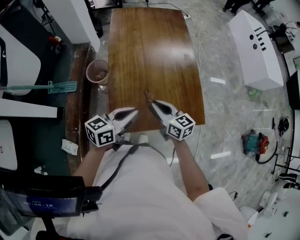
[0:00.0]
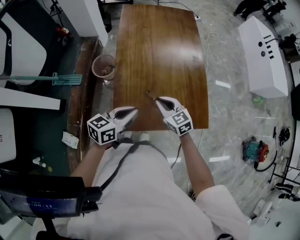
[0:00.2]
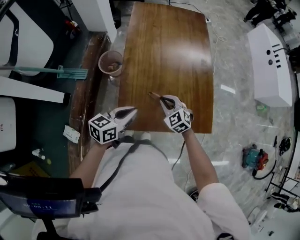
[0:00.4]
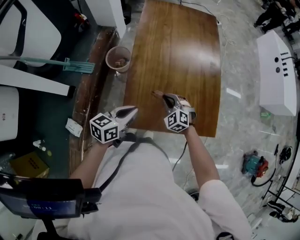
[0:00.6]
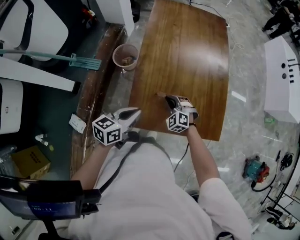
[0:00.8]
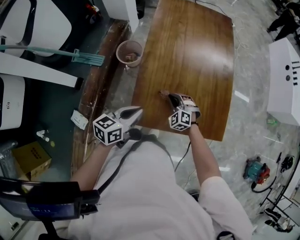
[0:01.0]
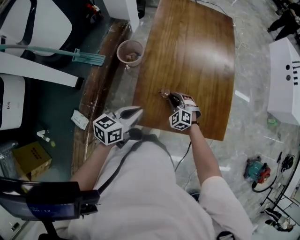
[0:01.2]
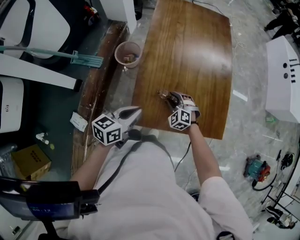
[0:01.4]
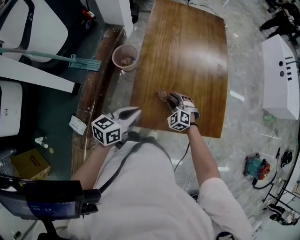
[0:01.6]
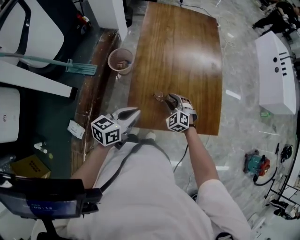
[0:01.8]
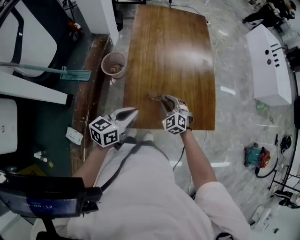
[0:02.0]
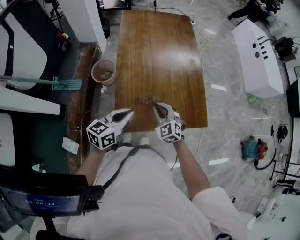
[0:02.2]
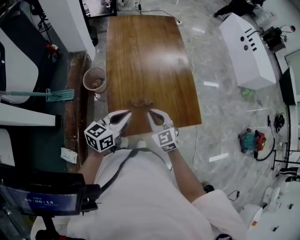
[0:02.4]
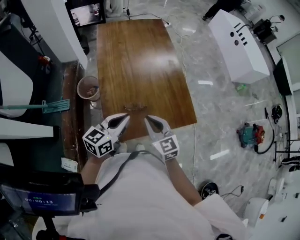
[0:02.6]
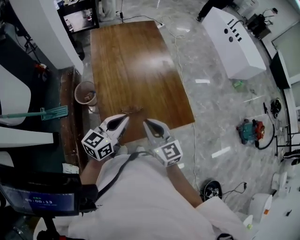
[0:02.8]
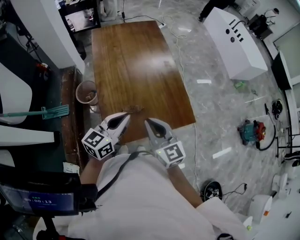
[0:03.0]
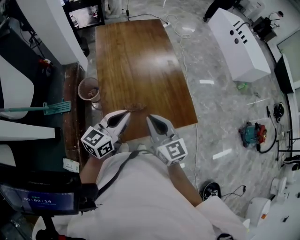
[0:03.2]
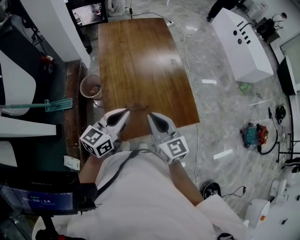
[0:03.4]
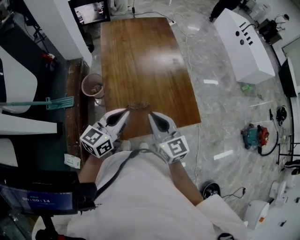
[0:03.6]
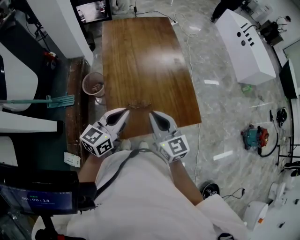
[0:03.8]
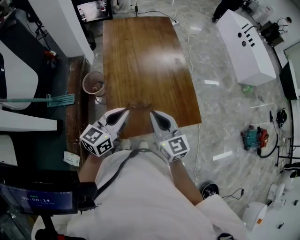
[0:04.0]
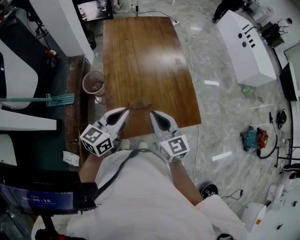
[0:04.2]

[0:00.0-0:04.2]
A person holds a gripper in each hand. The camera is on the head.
0:00.0 to 0:01.4: The right gripper moves downward, about 20 cm, rolls counterclockwise, seen from behind, by some 70 degrees, and opens up. Meanwhile the left gripper travels to the left and downward by roughly 10 cm.
0:01.4 to 0:02.8: The left gripper heads upward and to the right, covering roughly 15 cm, and rotates about 30 degrees. Meanwhile the right gripper travels upward and backward by some 30 cm, twists approximately 60 degrees clockwise, seen from behind, and closes its fingers.
0:02.8 to 0:04.2: There are only small adjustments of the grippers.

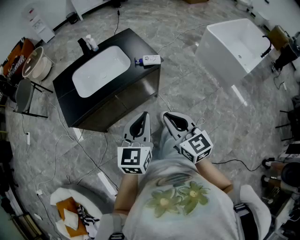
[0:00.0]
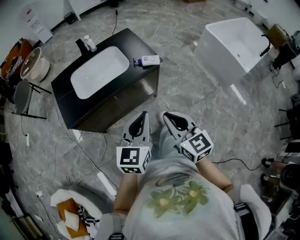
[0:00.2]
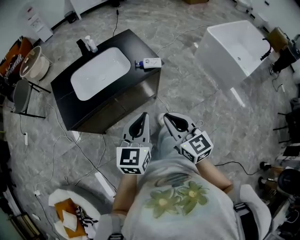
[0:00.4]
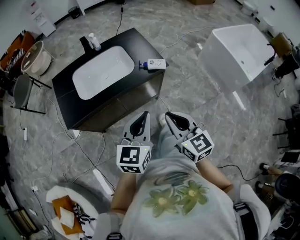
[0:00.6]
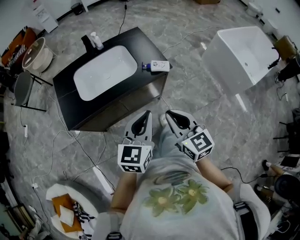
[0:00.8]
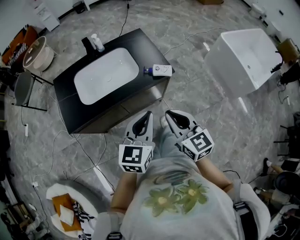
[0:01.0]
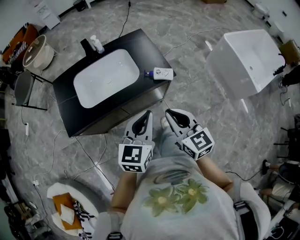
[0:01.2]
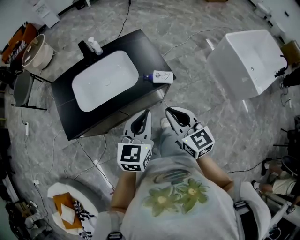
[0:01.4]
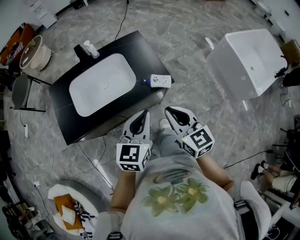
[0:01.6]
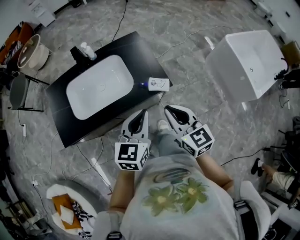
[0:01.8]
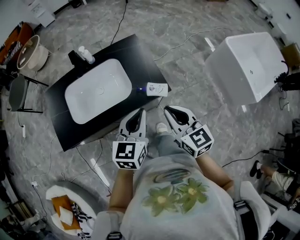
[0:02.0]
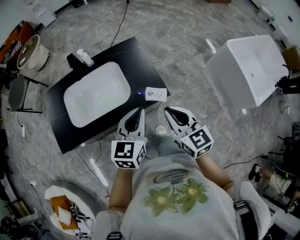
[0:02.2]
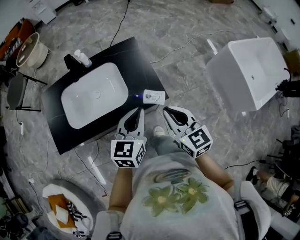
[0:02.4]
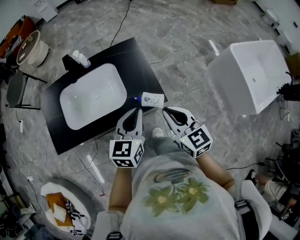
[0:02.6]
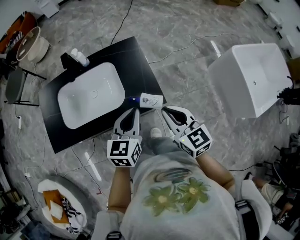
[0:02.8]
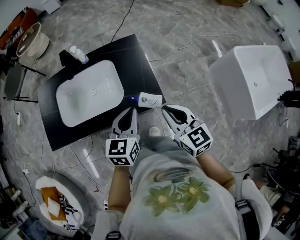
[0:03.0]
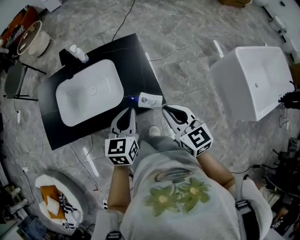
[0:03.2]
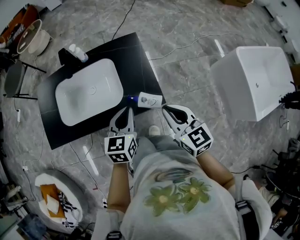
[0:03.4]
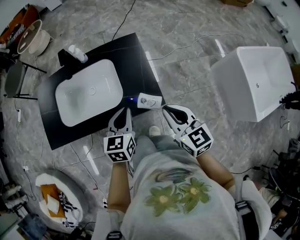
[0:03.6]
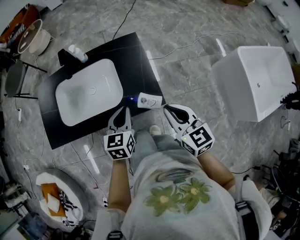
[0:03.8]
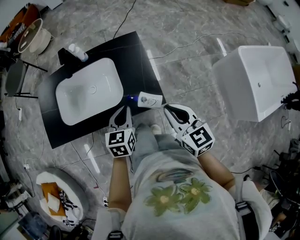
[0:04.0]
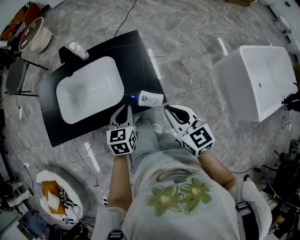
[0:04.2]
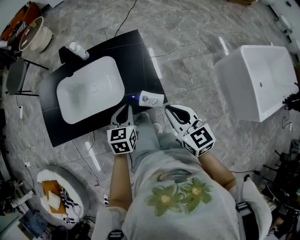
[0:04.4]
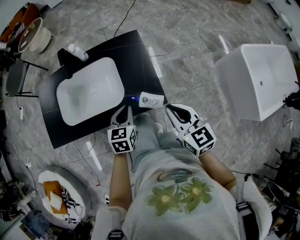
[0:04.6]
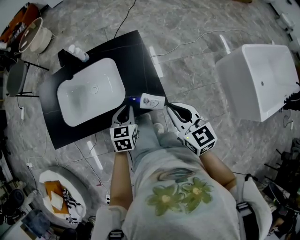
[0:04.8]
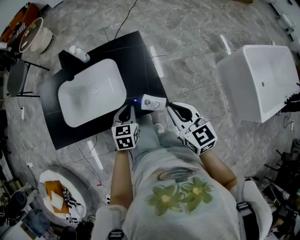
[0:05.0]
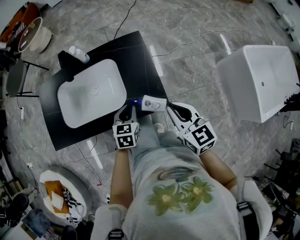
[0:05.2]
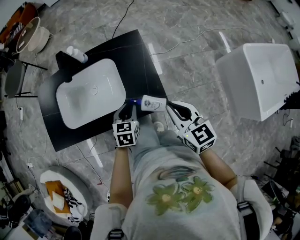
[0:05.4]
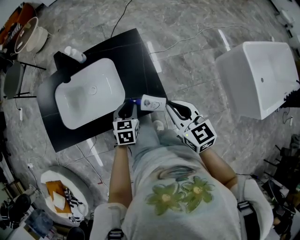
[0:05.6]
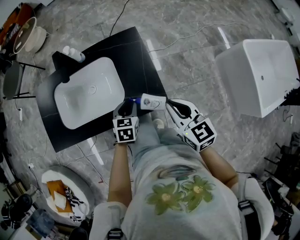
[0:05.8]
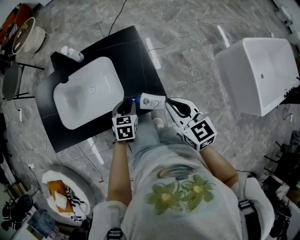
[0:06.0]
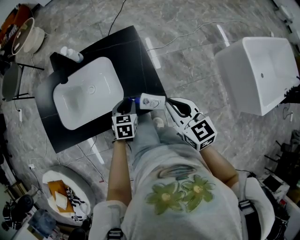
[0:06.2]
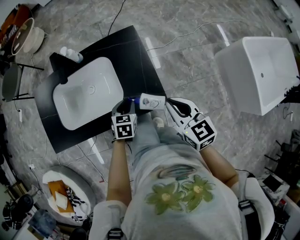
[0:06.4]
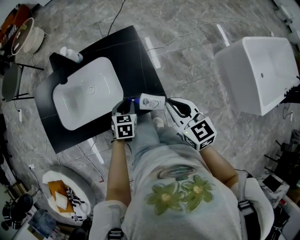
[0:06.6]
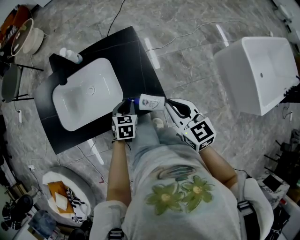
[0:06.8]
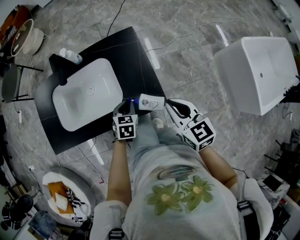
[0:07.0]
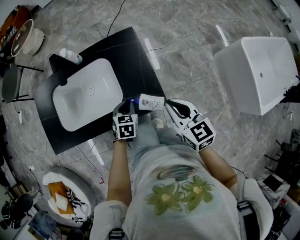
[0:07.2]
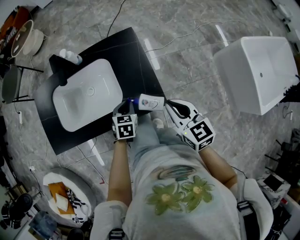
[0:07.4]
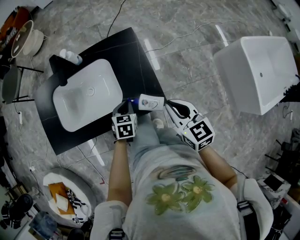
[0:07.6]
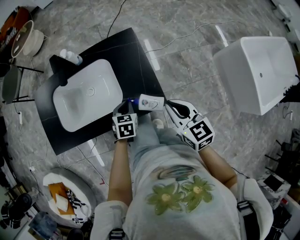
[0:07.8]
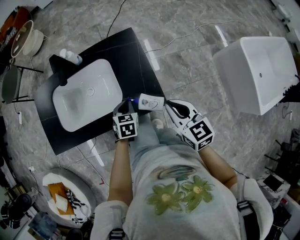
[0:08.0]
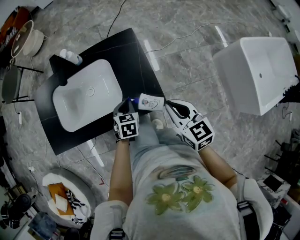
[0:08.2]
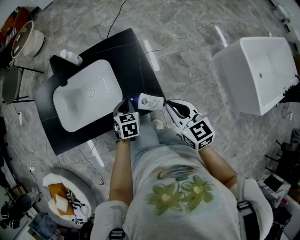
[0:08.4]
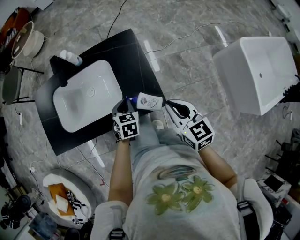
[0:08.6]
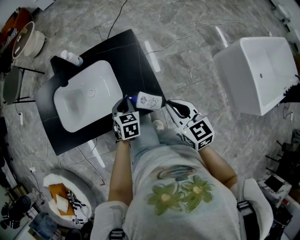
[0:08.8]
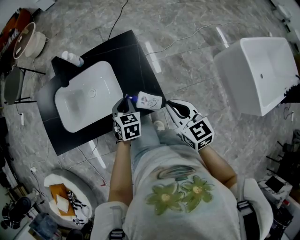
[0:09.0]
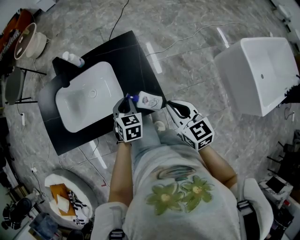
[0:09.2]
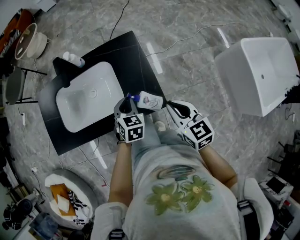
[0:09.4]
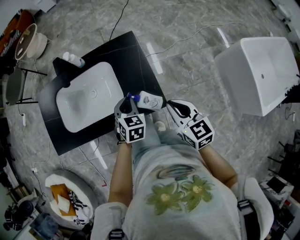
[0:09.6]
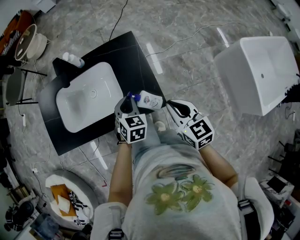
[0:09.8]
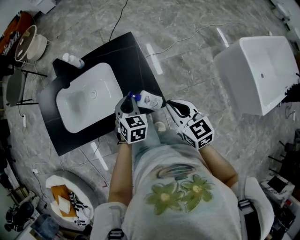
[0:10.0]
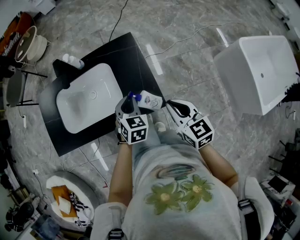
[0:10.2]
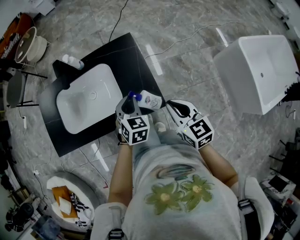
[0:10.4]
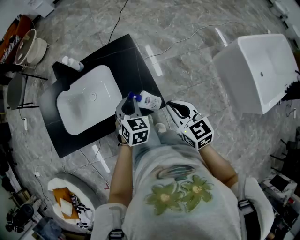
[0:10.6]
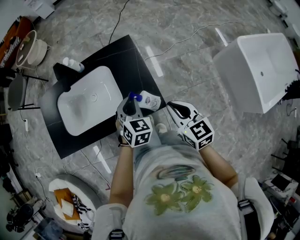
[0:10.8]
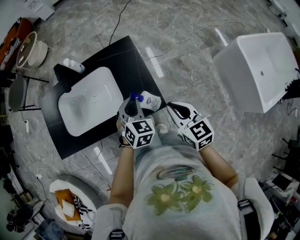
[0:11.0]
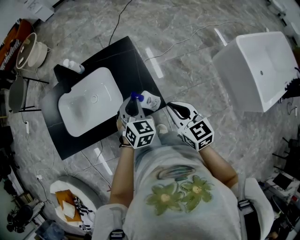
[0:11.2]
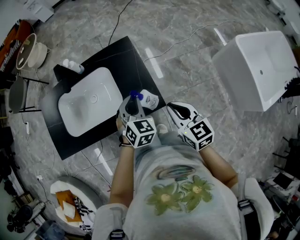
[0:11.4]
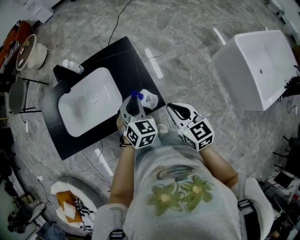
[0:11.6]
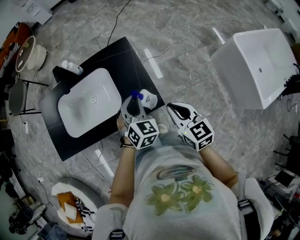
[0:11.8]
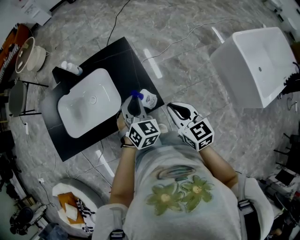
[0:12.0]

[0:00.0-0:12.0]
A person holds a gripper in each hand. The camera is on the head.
0:00.0 to 0:01.6: The grippers both shift forward by some 30 cm.
0:01.6 to 0:03.0: The left gripper moves forward, downward and to the right, roughly 20 cm; the right gripper moves forward and to the right, roughly 20 cm.
0:03.0 to 0:04.4: The left gripper moves downward, some 10 cm.
0:04.4 to 0:06.0: The right gripper moves forward, approximately 5 cm, while the left gripper travels downward and forward by approximately 10 cm, and opens up.
0:06.0 to 0:07.6: The left gripper closes its fingers.
0:07.6 to 0:09.0: The left gripper moves about 5 cm.
0:09.0 to 0:10.4: The left gripper heads upward, covering approximately 5 cm.
0:10.4 to 0:12.0: The left gripper ends up about 5 cm from where it was.

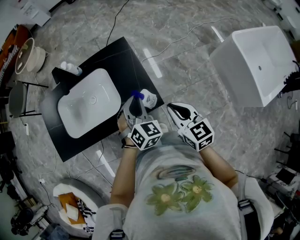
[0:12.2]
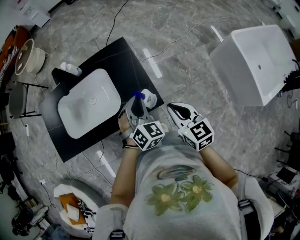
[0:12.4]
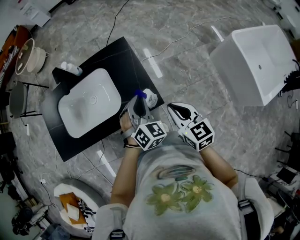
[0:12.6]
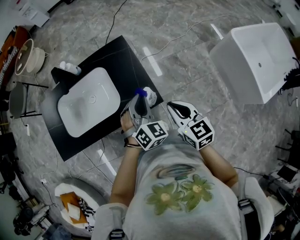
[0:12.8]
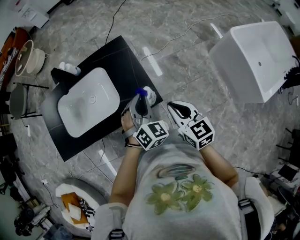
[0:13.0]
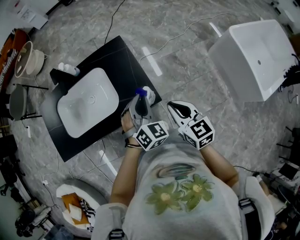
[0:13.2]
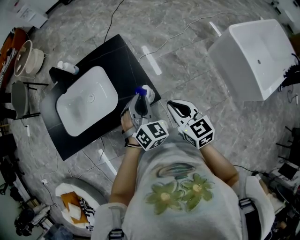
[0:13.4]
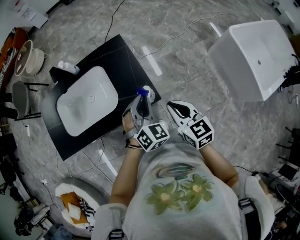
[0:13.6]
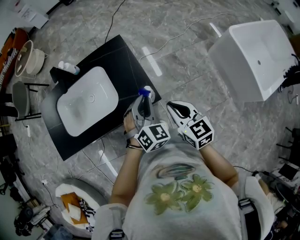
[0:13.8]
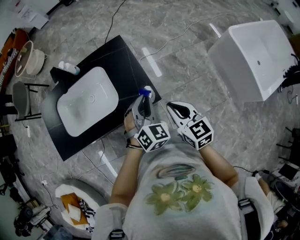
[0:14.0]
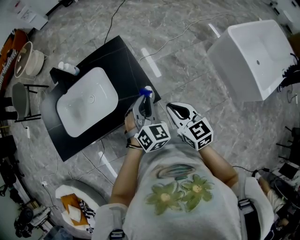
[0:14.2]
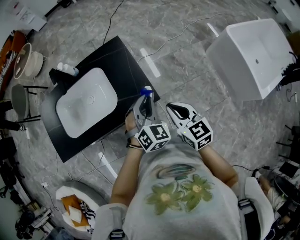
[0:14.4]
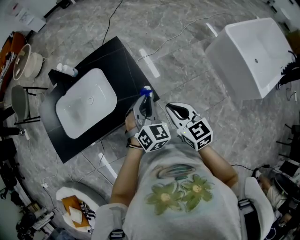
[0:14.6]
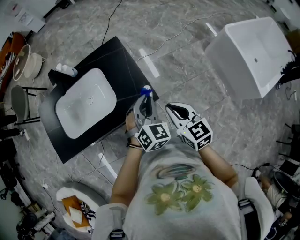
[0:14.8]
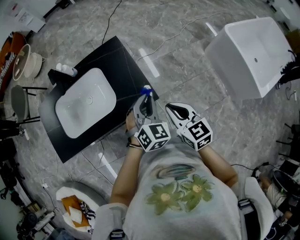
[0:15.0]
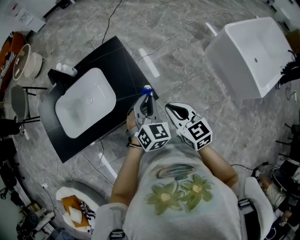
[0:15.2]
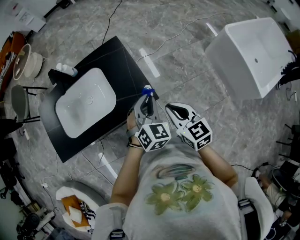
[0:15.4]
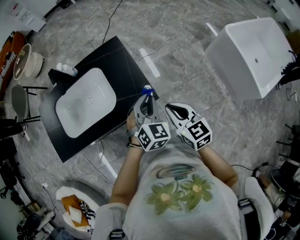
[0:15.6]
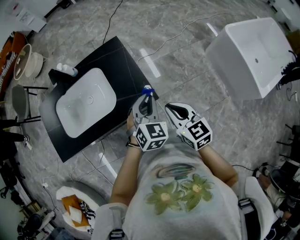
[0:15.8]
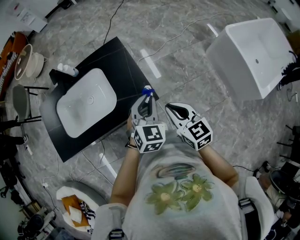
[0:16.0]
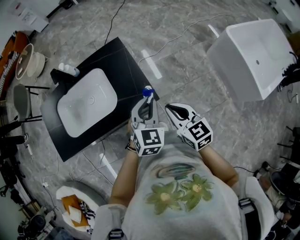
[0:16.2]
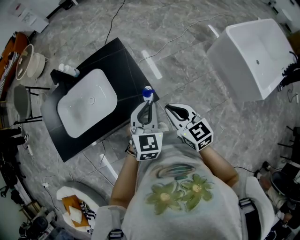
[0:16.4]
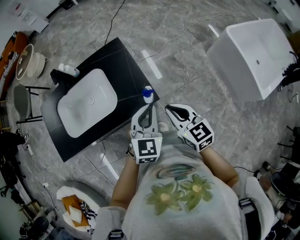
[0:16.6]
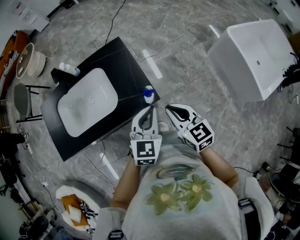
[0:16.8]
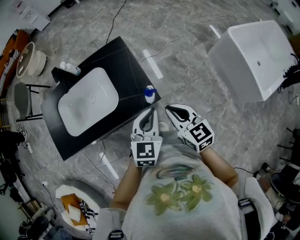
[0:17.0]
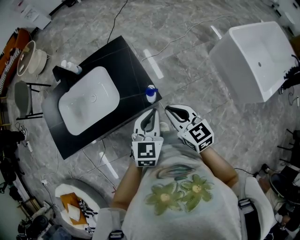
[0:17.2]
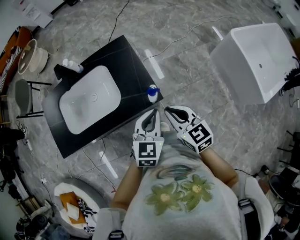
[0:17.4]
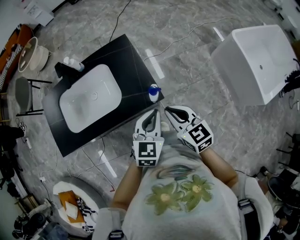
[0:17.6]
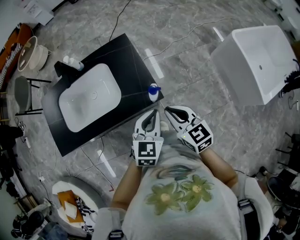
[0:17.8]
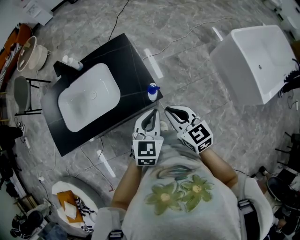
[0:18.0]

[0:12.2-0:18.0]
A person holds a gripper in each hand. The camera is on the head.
0:12.2 to 0:13.6: The left gripper moves about 5 cm.
0:13.6 to 0:15.0: The grippers move only a little.
0:15.0 to 0:16.6: The left gripper ends up roughly 5 cm from where it was, and rotates some 20 degrees.
0:16.6 to 0:18.0: The grippers stay close to where they were, moving slightly.

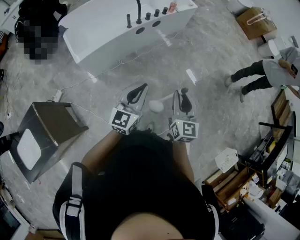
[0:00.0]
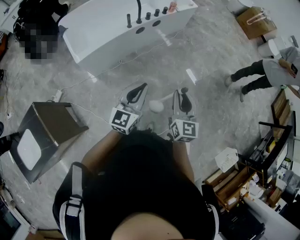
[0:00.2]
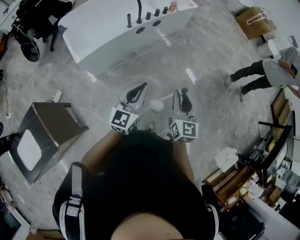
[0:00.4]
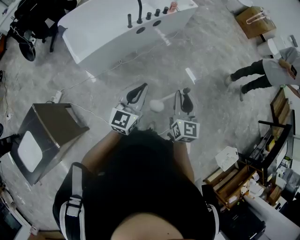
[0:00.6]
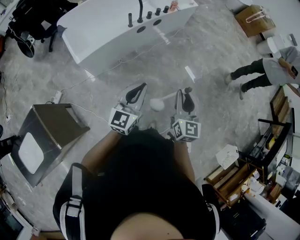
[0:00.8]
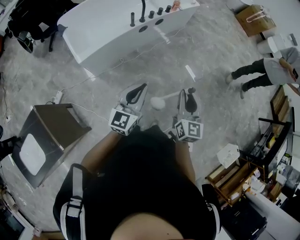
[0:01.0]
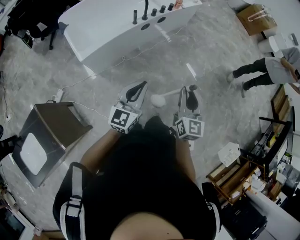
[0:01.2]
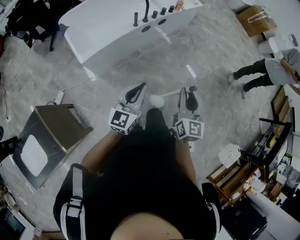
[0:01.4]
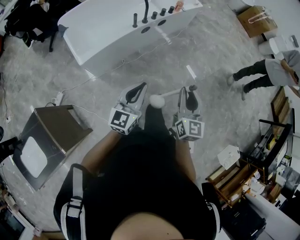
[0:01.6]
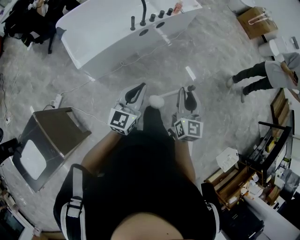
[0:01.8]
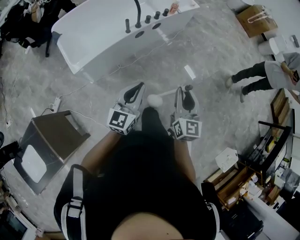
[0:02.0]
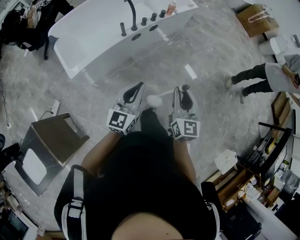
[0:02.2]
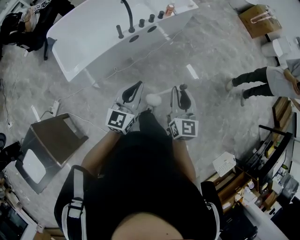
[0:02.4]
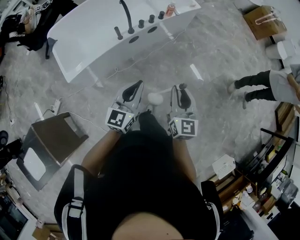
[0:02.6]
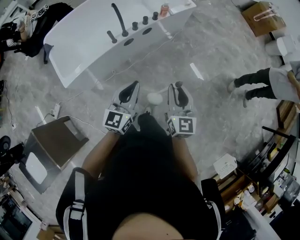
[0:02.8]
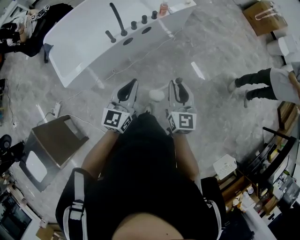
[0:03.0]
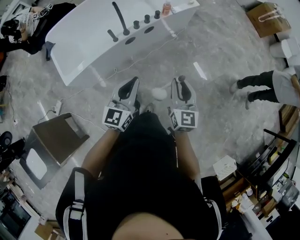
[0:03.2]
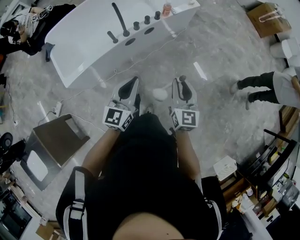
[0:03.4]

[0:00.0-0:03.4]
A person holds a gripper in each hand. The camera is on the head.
0:00.0 to 0:01.6: Both grippers travel together to the left, roughly 10 cm.
0:01.6 to 0:03.4: The right gripper travels forward by roughly 30 cm; the left gripper is displaced forward and to the right by approximately 30 cm.
